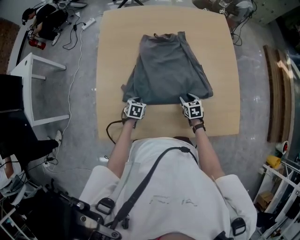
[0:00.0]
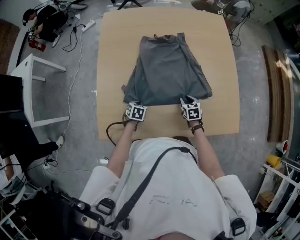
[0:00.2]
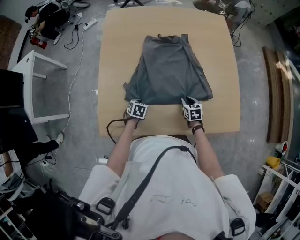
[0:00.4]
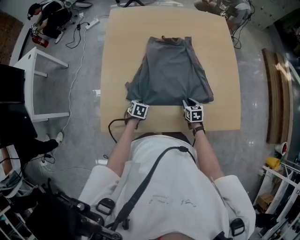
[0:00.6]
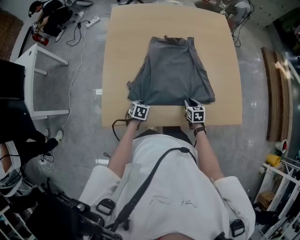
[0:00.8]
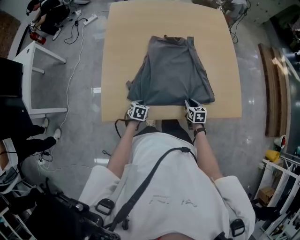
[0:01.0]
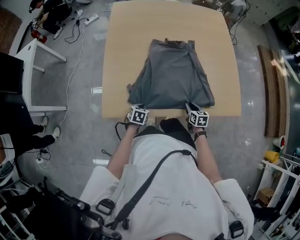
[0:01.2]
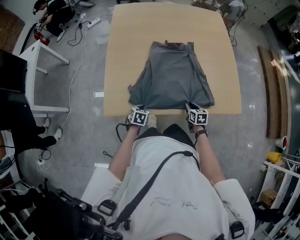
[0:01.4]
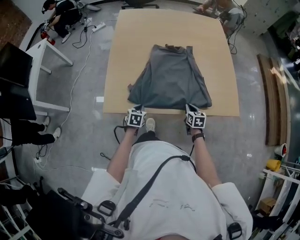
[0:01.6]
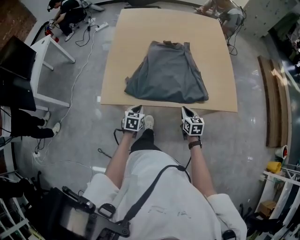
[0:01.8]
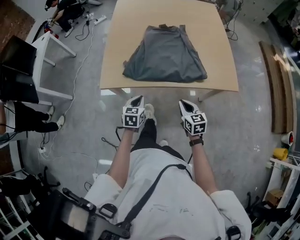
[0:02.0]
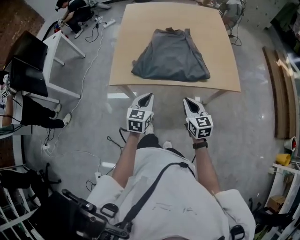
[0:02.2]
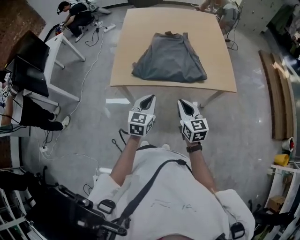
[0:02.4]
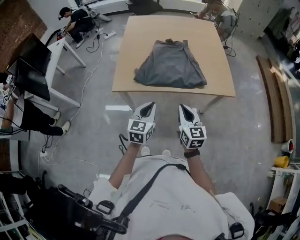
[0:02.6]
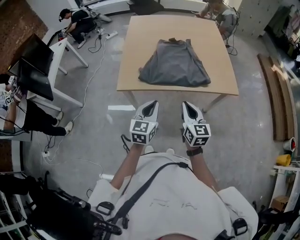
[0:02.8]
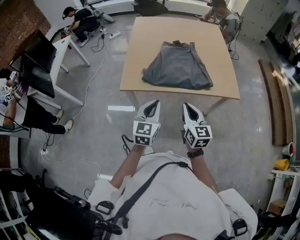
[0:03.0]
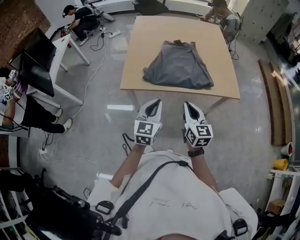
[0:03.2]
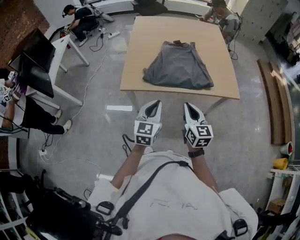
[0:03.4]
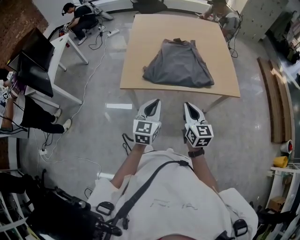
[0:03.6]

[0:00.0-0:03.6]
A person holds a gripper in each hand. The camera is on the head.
0:00.0 to 0:01.8: The grippers both shift backward by about 25 cm. The right gripper closes its fingers.
0:01.8 to 0:03.6: The right gripper is displaced upward, backward and to the left by about 30 cm, and rotates roughly 20 degrees; the left gripper travels upward and backward by approximately 30 cm, and points its fingers approximately 30 degrees further upward.

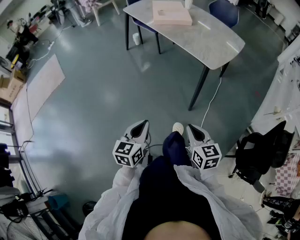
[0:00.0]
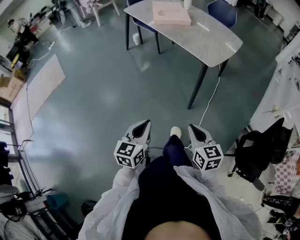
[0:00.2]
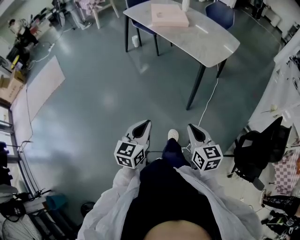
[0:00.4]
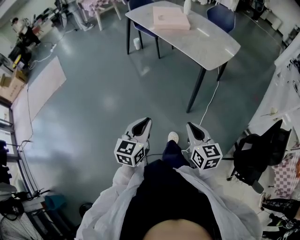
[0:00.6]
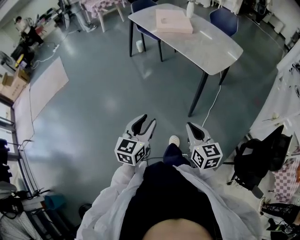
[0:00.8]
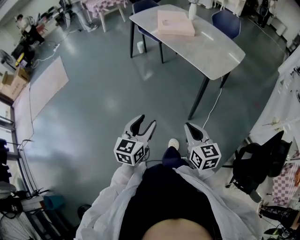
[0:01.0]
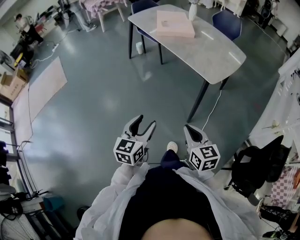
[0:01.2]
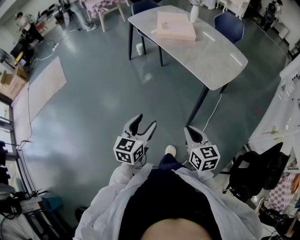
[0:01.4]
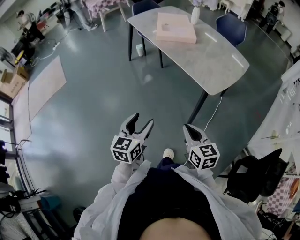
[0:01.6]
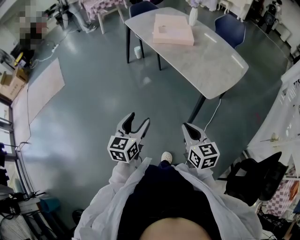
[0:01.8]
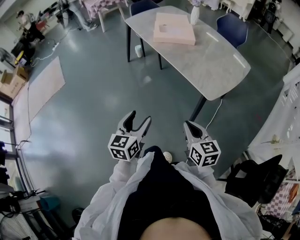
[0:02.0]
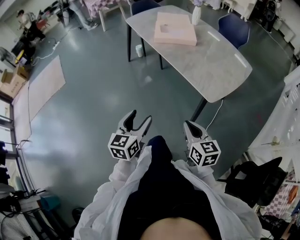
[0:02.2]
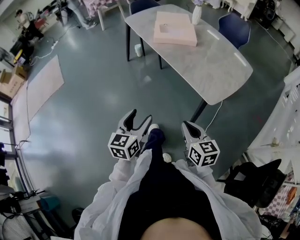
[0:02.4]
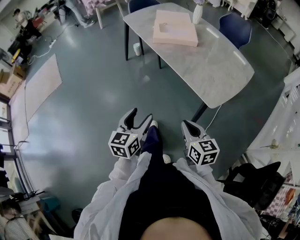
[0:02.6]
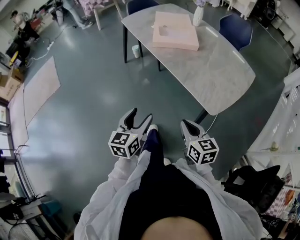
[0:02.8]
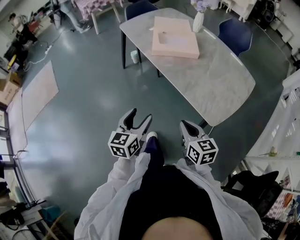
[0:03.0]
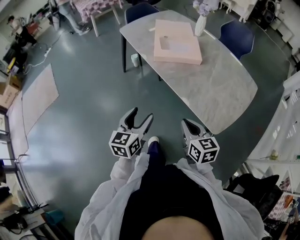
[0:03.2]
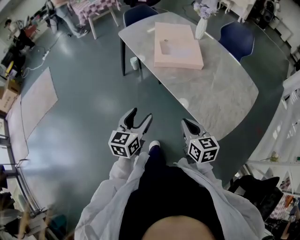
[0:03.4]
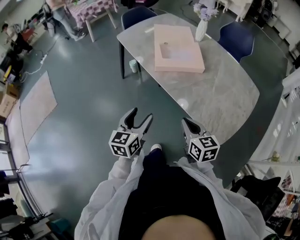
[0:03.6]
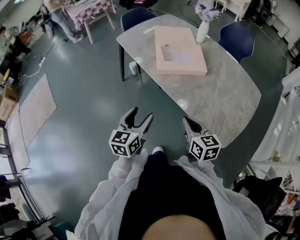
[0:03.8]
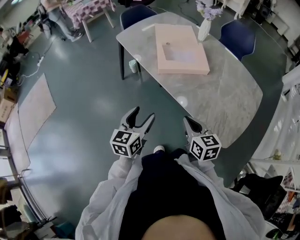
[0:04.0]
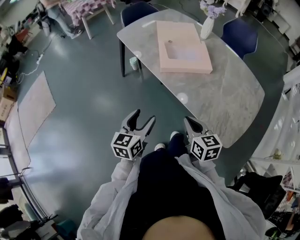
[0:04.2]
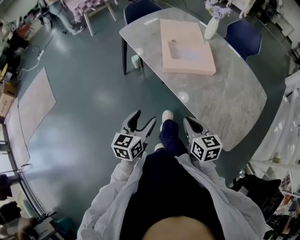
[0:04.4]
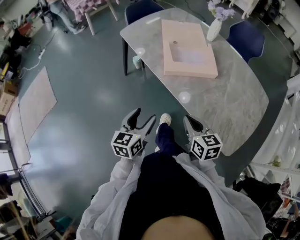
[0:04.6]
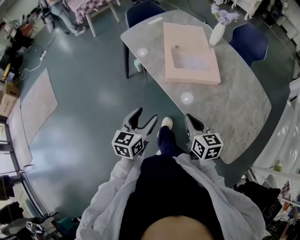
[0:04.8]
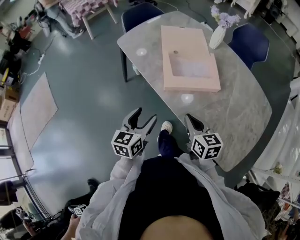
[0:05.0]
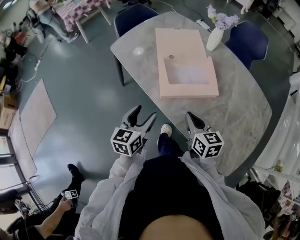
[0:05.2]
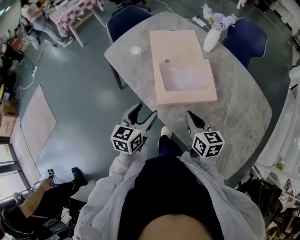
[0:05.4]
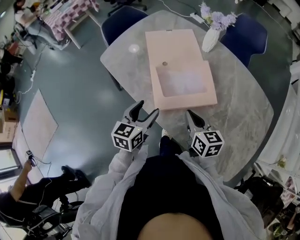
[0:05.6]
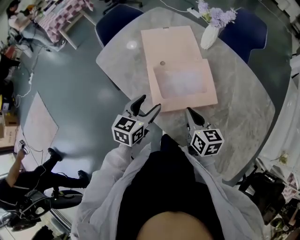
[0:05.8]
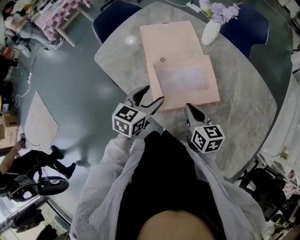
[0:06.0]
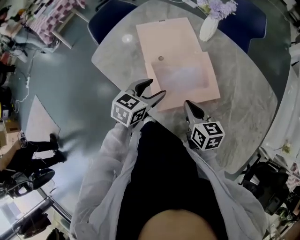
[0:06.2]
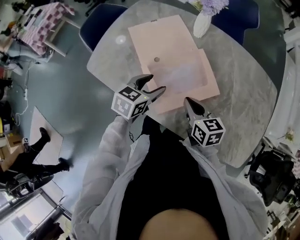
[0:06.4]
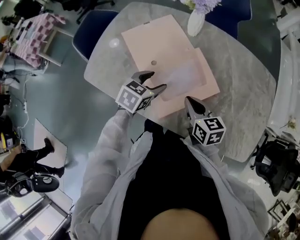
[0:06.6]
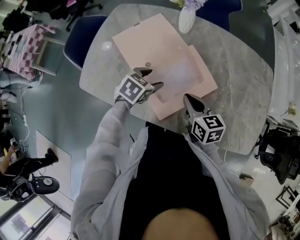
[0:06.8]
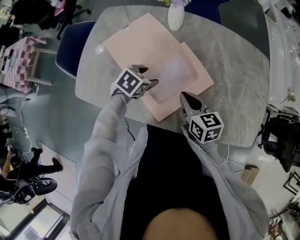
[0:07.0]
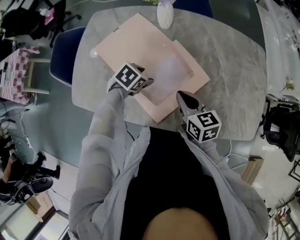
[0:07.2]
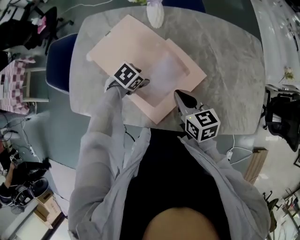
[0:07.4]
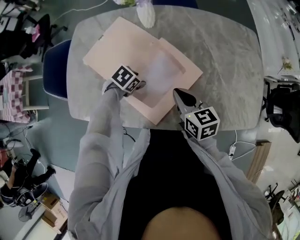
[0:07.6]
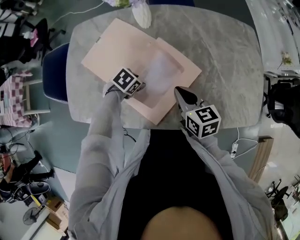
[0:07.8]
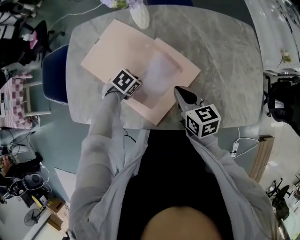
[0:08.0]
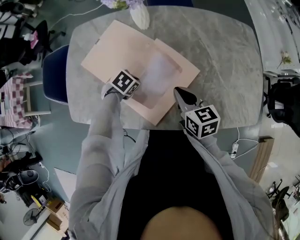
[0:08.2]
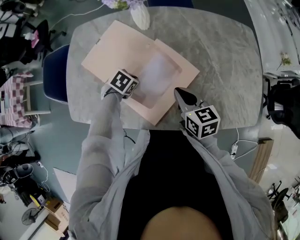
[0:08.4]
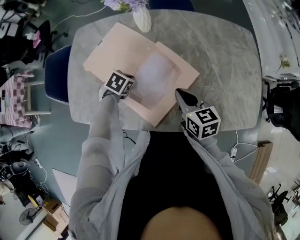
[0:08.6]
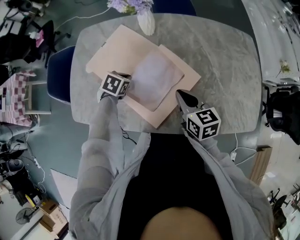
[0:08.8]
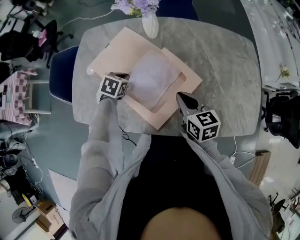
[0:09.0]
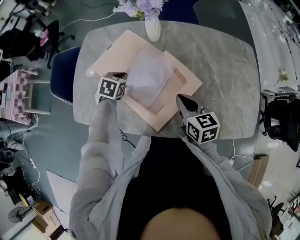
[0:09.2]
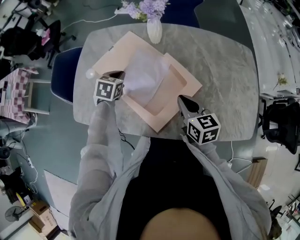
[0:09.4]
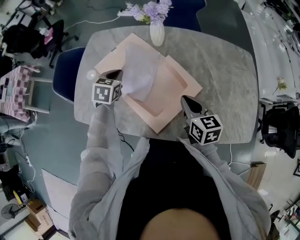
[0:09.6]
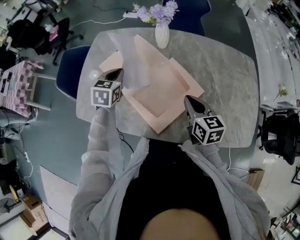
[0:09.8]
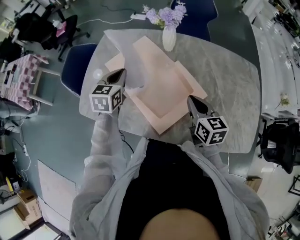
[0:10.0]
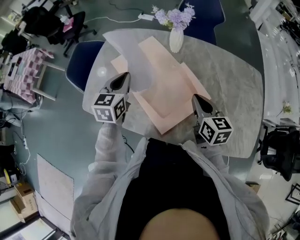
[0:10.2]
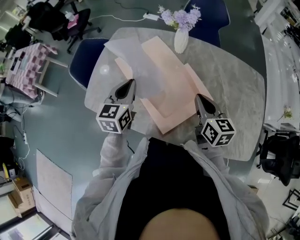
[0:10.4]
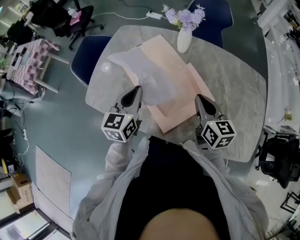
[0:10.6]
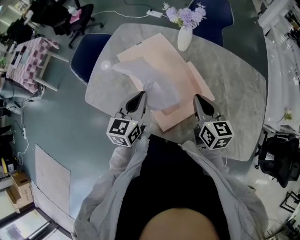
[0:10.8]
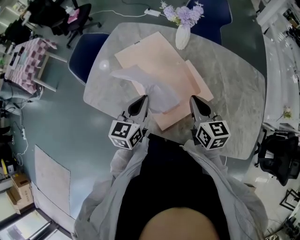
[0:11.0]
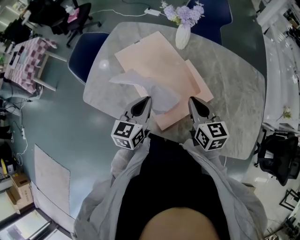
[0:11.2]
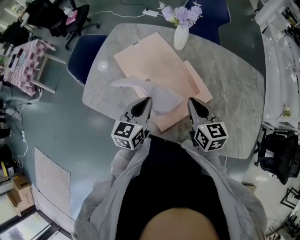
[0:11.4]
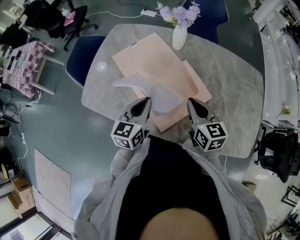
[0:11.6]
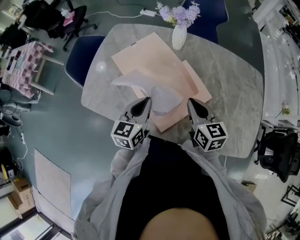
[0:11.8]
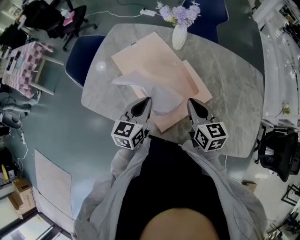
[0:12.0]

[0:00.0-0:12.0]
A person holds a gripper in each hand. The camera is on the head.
0:00.0 to 0:01.6: Both grippers move forward, roughly 15 cm. The left gripper opens up.
0:01.6 to 0:03.0: The two grippers go some 25 cm forward.
0:03.0 to 0:04.4: The two grippers go about 20 cm forward and to the left.
0:04.4 to 0:06.0: The grippers both shift forward by approximately 35 cm. The left gripper turns by roughly 30 degrees.
0:06.0 to 0:07.6: The right gripper shifts by some 5 cm, and changes its angle by roughly 30 degrees. Meanwhile the left gripper heads downward, covering roughly 15 cm, and points its fingers about 40 degrees further downward.
0:07.6 to 0:09.0: The left gripper changes place by approximately 10 cm, rotates some 30 degrees, and closes its fingers.
0:09.0 to 0:10.4: The right gripper travels upward by about 5 cm; the left gripper heads upward, covering some 20 cm, and tilts its fingers about 40 degrees upward.
0:10.4 to 0:12.0: The left gripper heads backward and to the right, covering approximately 10 cm.

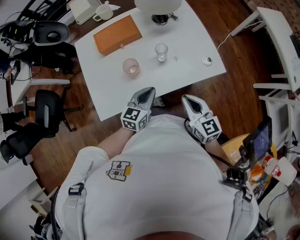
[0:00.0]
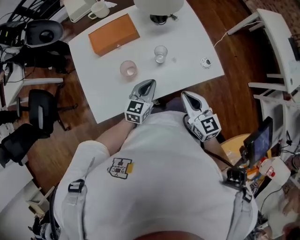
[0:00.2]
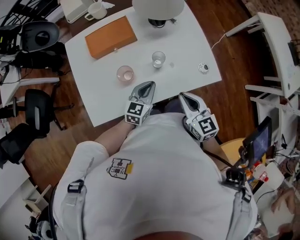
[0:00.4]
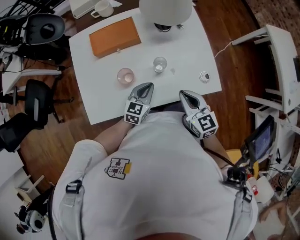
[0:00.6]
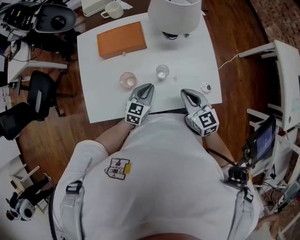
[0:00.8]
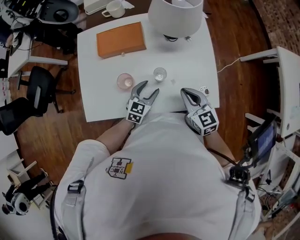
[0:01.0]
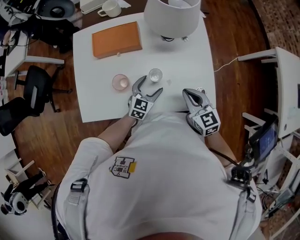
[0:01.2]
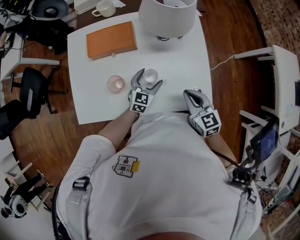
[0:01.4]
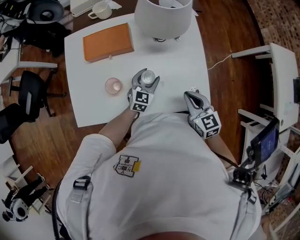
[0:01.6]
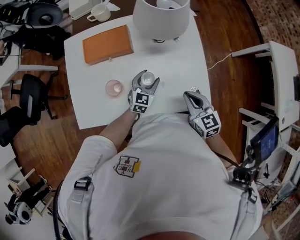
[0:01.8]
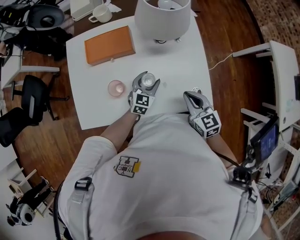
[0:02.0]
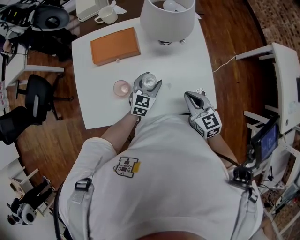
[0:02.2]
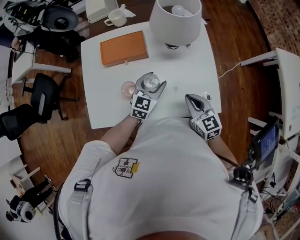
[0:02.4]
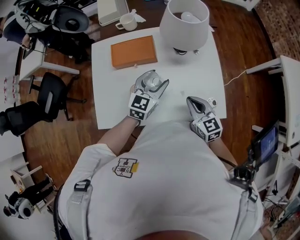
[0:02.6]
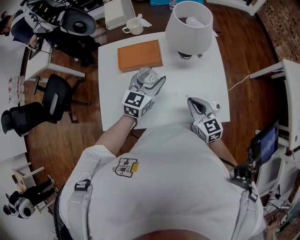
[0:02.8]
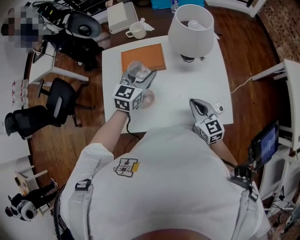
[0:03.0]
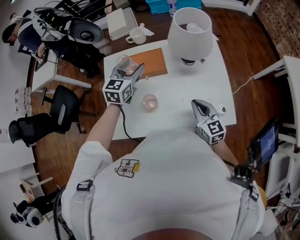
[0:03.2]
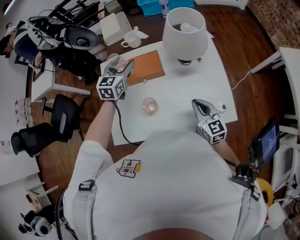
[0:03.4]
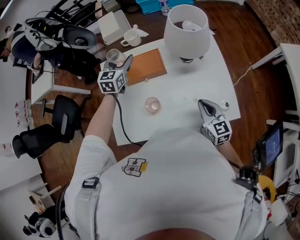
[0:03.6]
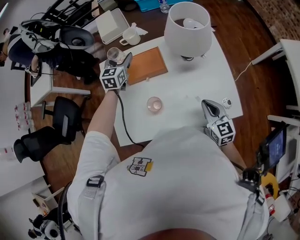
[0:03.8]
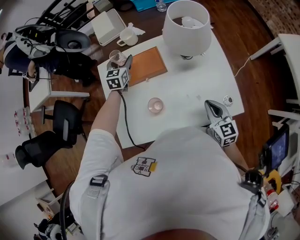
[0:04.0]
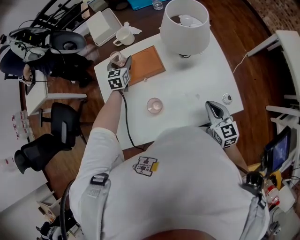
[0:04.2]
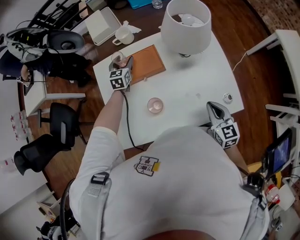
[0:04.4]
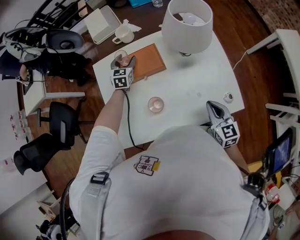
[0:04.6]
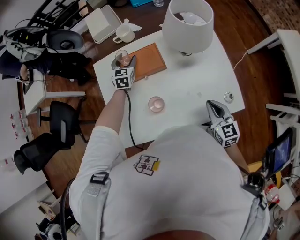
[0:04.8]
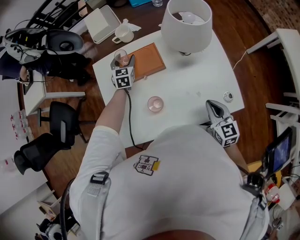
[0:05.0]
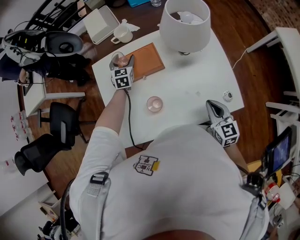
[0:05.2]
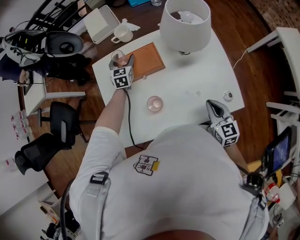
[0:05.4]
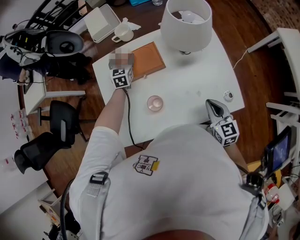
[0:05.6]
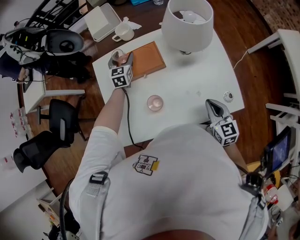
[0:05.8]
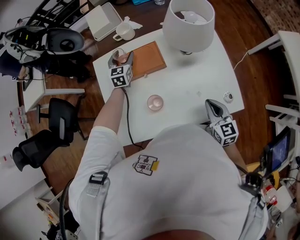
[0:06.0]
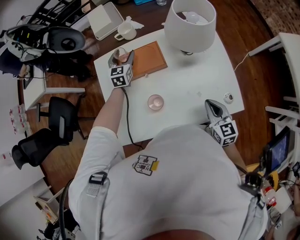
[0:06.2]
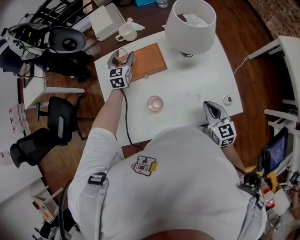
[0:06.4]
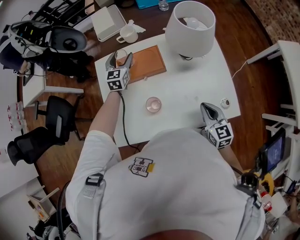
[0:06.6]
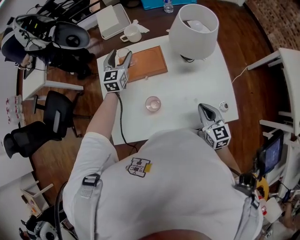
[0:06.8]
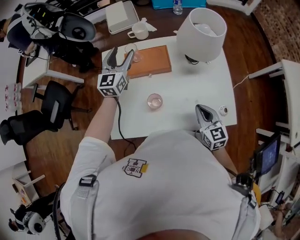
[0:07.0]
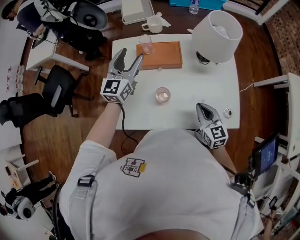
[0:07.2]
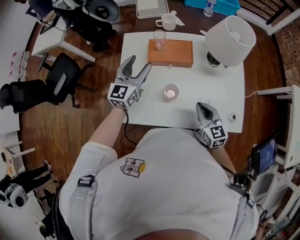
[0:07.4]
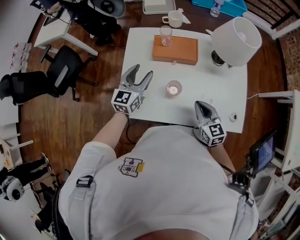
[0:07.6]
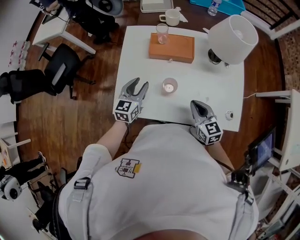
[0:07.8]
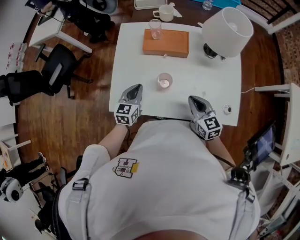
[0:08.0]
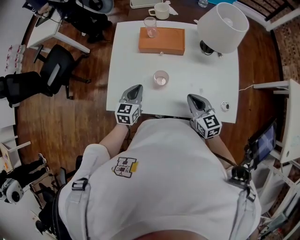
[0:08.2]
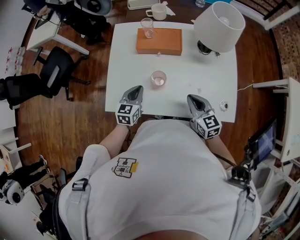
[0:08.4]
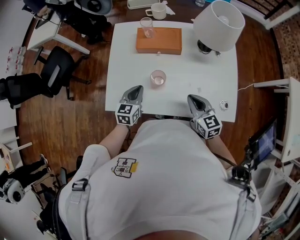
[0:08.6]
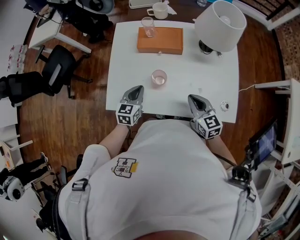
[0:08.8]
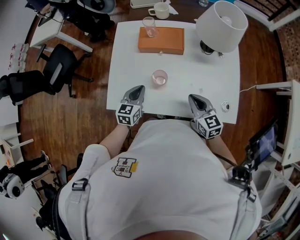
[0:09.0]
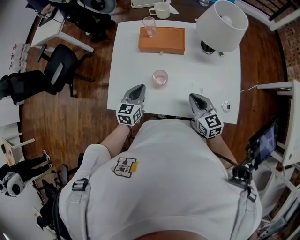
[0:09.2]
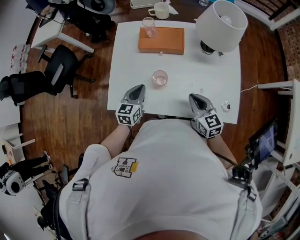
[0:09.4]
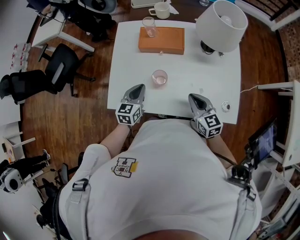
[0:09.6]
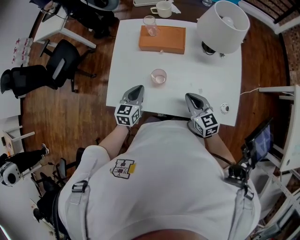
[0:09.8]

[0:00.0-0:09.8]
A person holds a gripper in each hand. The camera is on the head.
0:00.0 to 0:01.4: The left gripper travels forward and downward by some 20 cm, and opens; the right gripper is displaced forward and to the right by roughly 20 cm, and rotates roughly 20 degrees.
0:01.4 to 0:02.8: The left gripper is displaced upward and to the left by some 20 cm, while the right gripper is displaced to the left by roughly 10 cm.
0:02.8 to 0:04.2: The left gripper travels forward, to the left and downward by about 30 cm.
0:04.2 to 0:05.6: The grippers make only small movements.
0:05.6 to 0:07.0: The left gripper shifts approximately 20 cm upward and backward, and turns by some 20 degrees.
0:07.0 to 0:08.4: The right gripper heads to the left, covering approximately 5 cm. Meanwhile the left gripper moves backward and downward, approximately 30 cm, swivels roughly 30 degrees, and closes up.
0:08.4 to 0:09.8: The grippers stay close to where they were, moving slightly.
